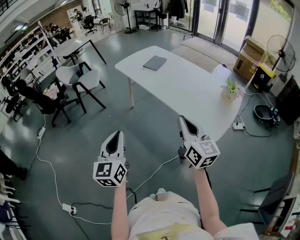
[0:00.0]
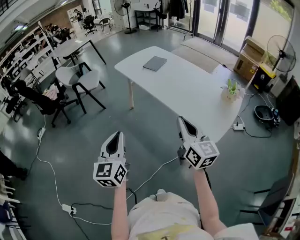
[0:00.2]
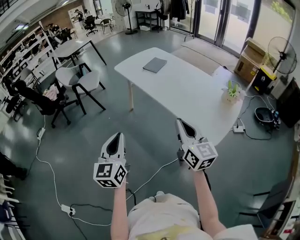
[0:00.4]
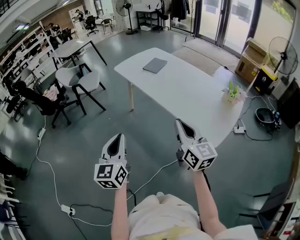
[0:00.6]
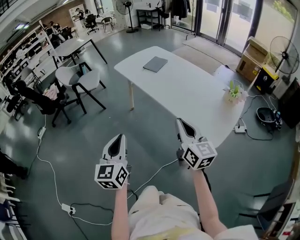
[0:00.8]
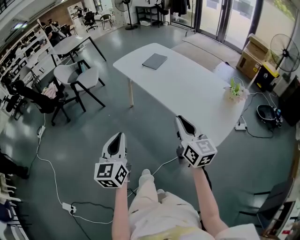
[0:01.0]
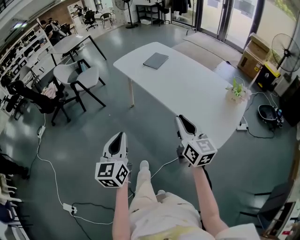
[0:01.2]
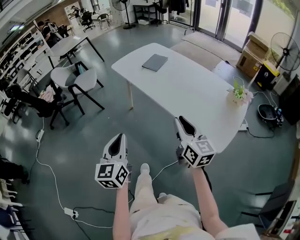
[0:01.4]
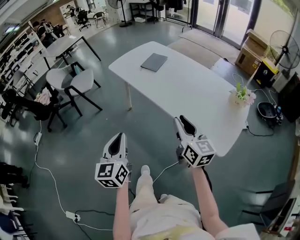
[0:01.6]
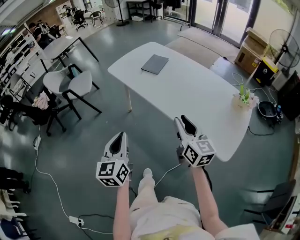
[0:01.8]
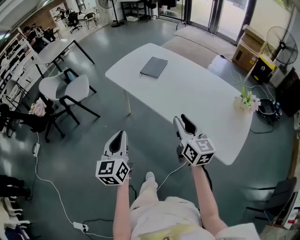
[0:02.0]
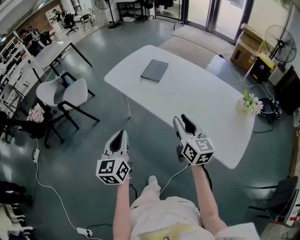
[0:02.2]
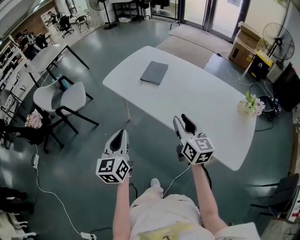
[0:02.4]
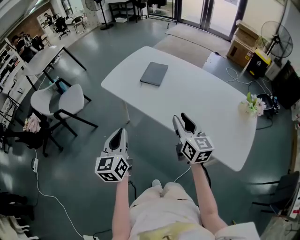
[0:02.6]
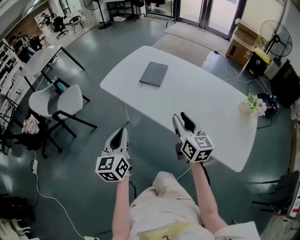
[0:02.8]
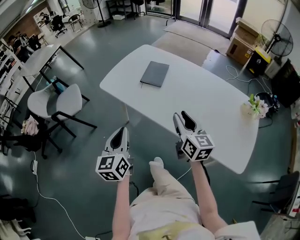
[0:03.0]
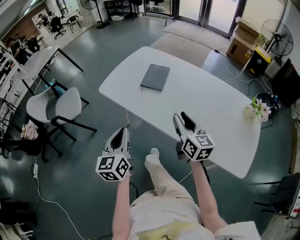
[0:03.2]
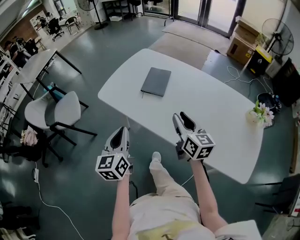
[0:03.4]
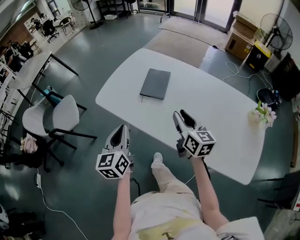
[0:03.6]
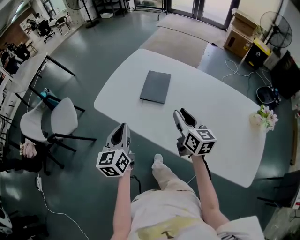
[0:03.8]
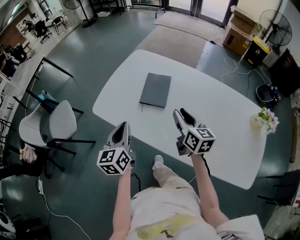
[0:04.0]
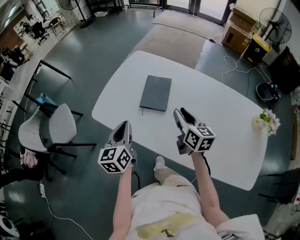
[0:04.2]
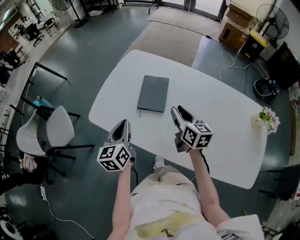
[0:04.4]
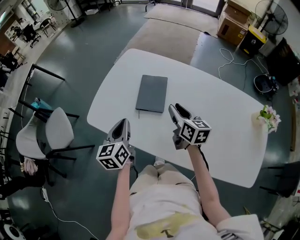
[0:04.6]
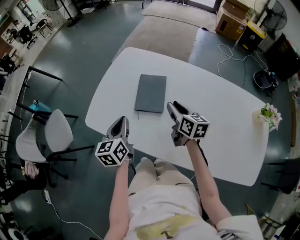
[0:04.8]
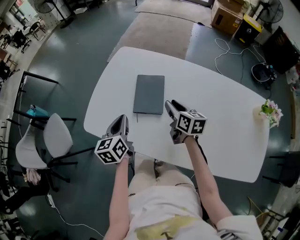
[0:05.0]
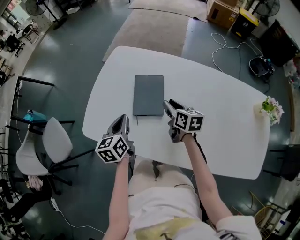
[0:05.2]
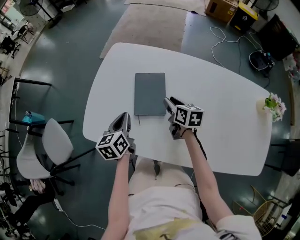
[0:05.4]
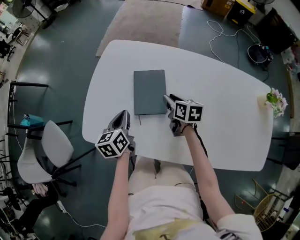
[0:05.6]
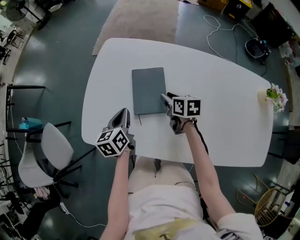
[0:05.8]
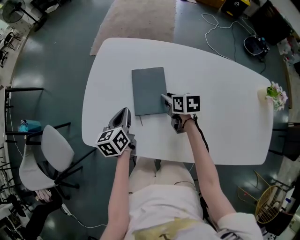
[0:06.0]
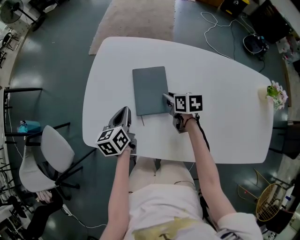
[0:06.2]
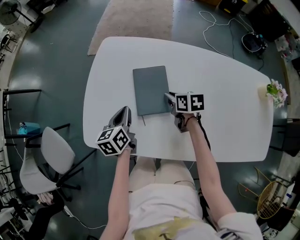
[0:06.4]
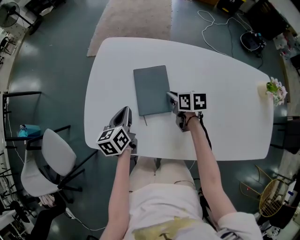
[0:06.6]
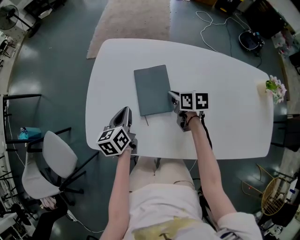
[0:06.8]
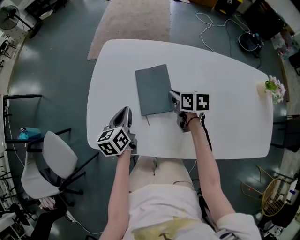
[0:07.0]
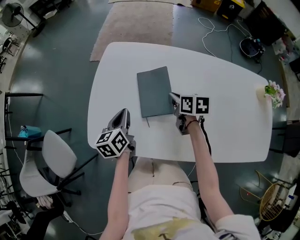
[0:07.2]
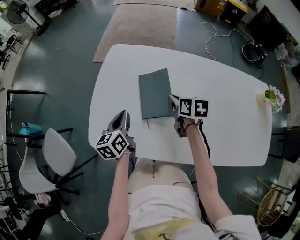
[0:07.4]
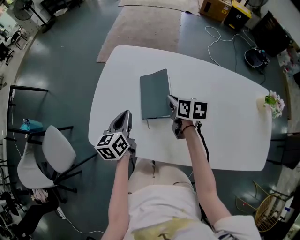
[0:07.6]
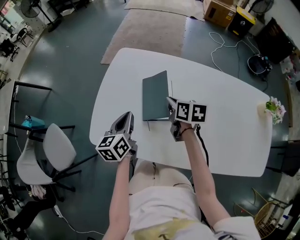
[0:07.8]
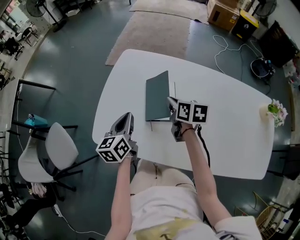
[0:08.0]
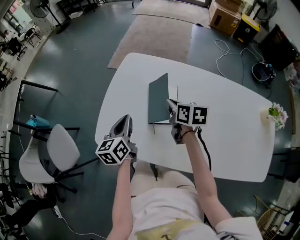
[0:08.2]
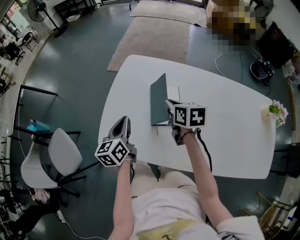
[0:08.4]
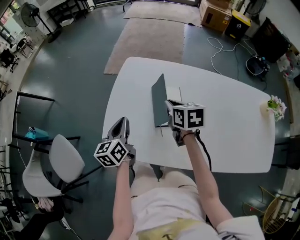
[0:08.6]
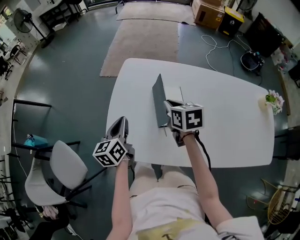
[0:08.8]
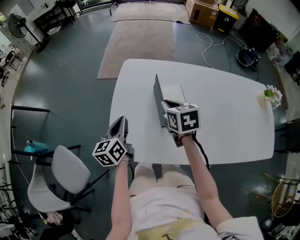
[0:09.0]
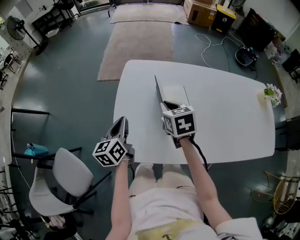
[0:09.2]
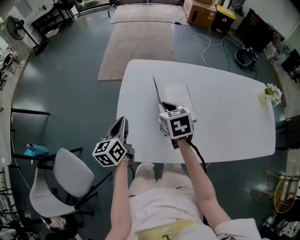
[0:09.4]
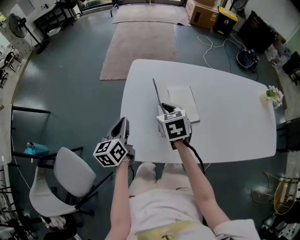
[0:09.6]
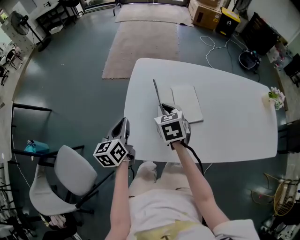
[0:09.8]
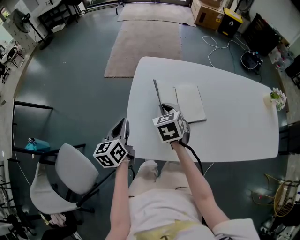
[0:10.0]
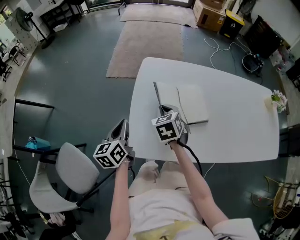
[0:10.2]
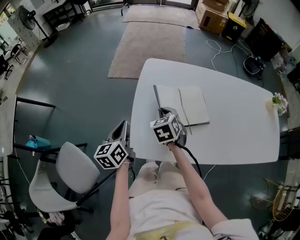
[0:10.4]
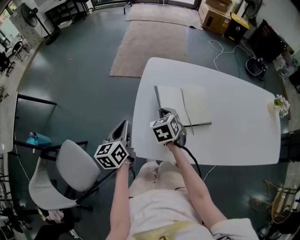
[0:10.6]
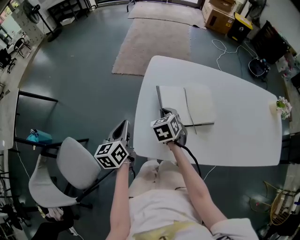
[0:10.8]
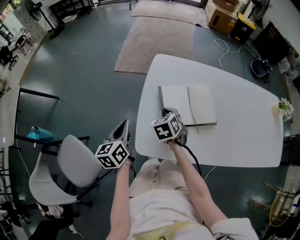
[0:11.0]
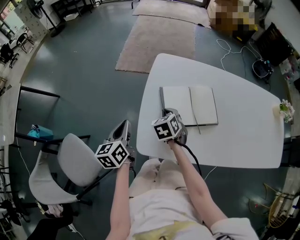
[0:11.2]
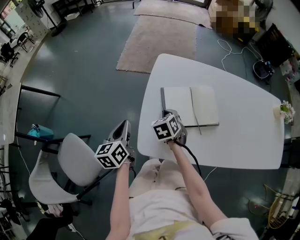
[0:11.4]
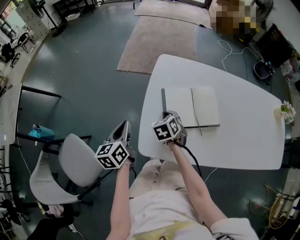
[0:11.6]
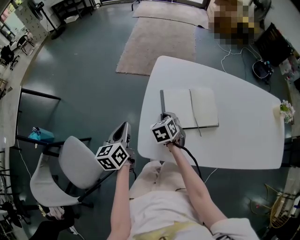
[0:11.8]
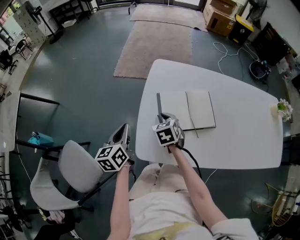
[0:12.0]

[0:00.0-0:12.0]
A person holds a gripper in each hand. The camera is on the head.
0:00.0 to 0:01.6: The two grippers go roughly 15 cm forward.
0:01.6 to 0:03.0: Both grippers move forward, roughly 25 cm.
0:03.0 to 0:04.4: Both grippers travel together forward, approximately 30 cm.
0:04.4 to 0:06.0: The left gripper heads forward and downward, covering about 20 cm, and rotates about 20 degrees. The right gripper goes about 20 cm downward and forward, and rotates some 30 degrees.
0:06.0 to 0:07.6: The left gripper changes place by about 5 cm. The right gripper goes roughly 5 cm upward, and closes.
0:07.6 to 0:09.0: The right gripper shifts roughly 15 cm to the left and upward, while the left gripper goes some 10 cm to the left.
0:09.0 to 0:10.4: The right gripper is displaced to the left and downward by some 15 cm, and changes its angle by some 20 degrees; the left gripper heads to the left, covering some 10 cm.
0:10.4 to 0:12.0: The right gripper goes roughly 5 cm downward.

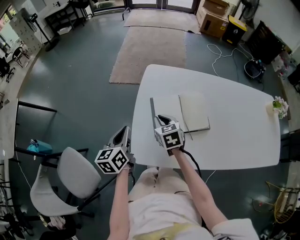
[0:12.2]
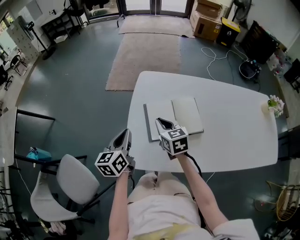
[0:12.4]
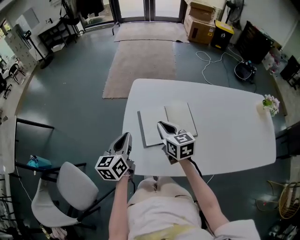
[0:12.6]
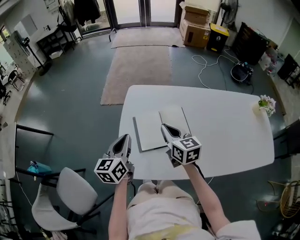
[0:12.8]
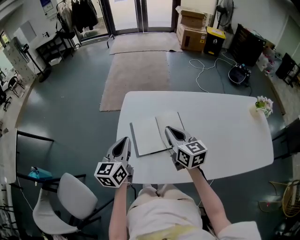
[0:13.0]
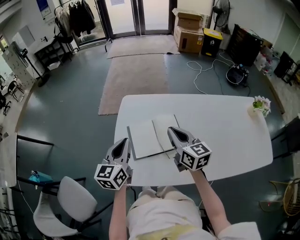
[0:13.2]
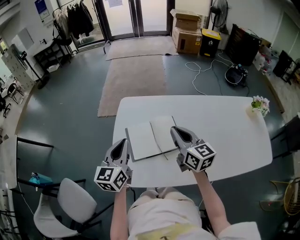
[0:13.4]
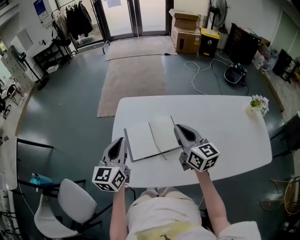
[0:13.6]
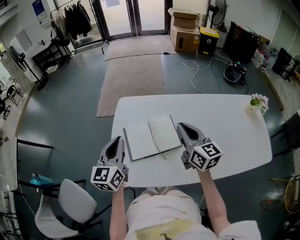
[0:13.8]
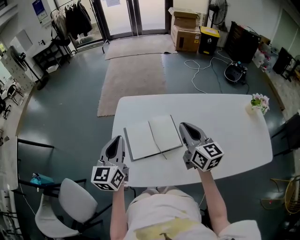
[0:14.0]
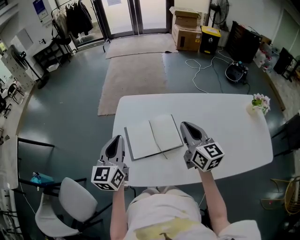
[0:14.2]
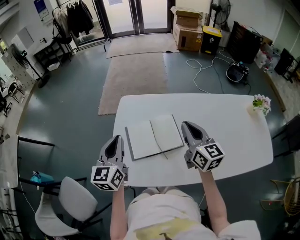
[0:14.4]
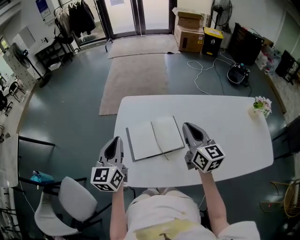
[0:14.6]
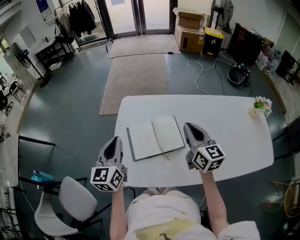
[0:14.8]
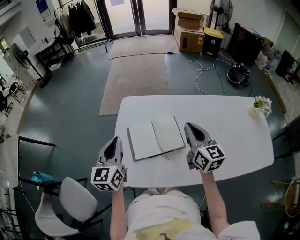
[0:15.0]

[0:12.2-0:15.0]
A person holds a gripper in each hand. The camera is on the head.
0:12.2 to 0:13.6: Both grippers travel together to the right and upward, about 25 cm. The left gripper turns by roughly 30 degrees. The right gripper tips its fingers upward by roughly 40 degrees.
0:13.6 to 0:15.0: The grippers move only a little.

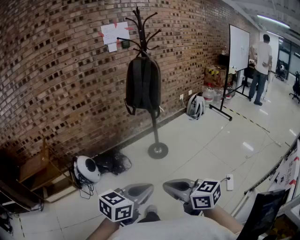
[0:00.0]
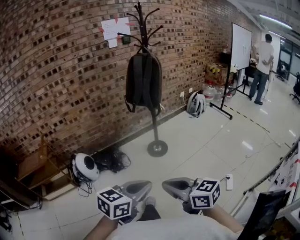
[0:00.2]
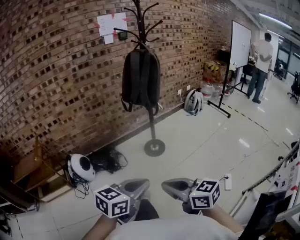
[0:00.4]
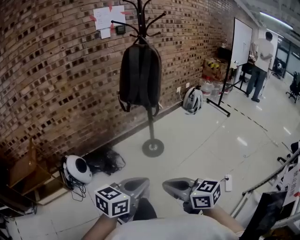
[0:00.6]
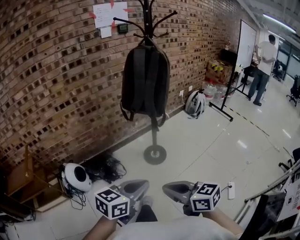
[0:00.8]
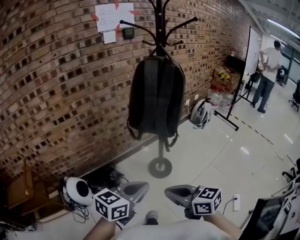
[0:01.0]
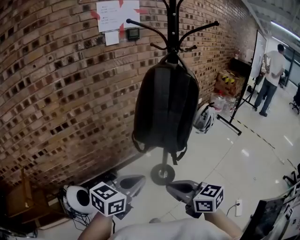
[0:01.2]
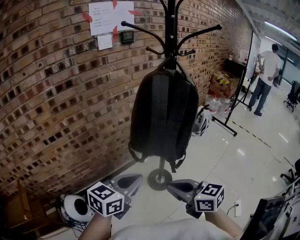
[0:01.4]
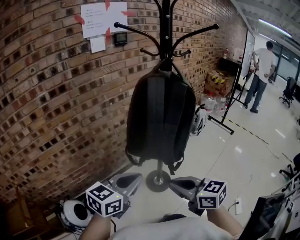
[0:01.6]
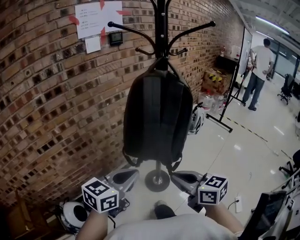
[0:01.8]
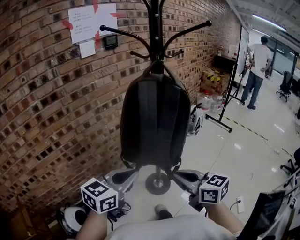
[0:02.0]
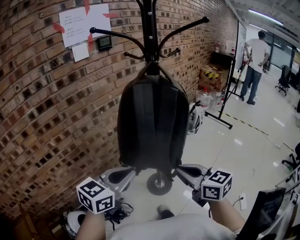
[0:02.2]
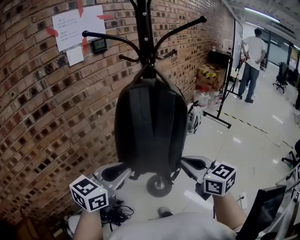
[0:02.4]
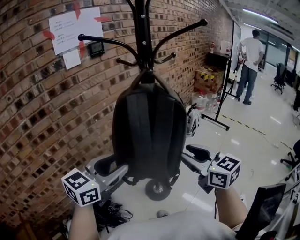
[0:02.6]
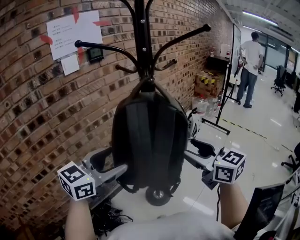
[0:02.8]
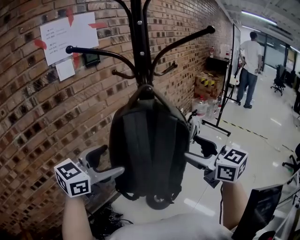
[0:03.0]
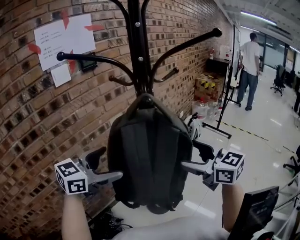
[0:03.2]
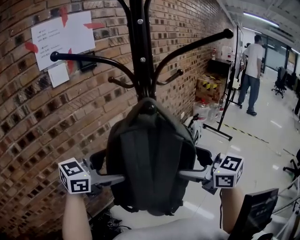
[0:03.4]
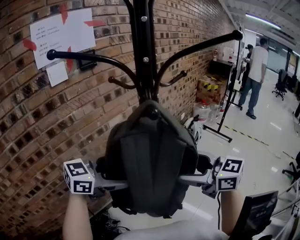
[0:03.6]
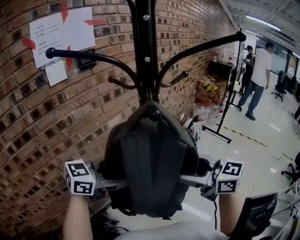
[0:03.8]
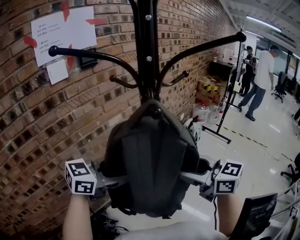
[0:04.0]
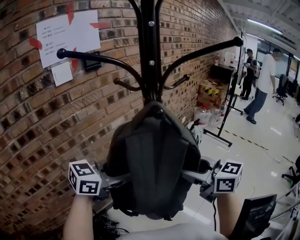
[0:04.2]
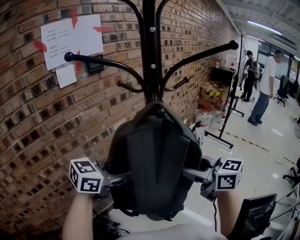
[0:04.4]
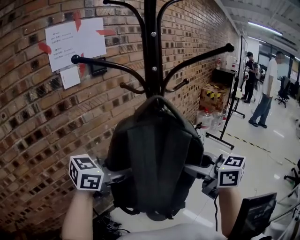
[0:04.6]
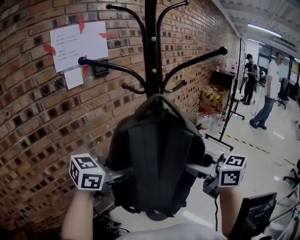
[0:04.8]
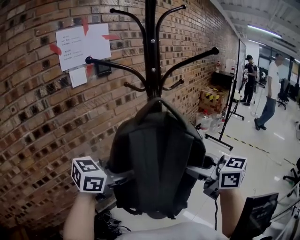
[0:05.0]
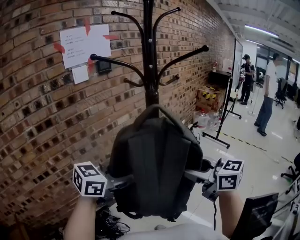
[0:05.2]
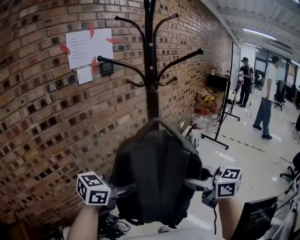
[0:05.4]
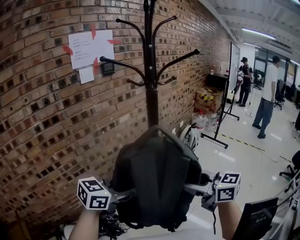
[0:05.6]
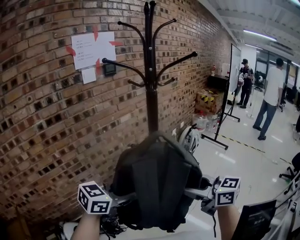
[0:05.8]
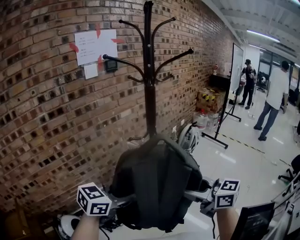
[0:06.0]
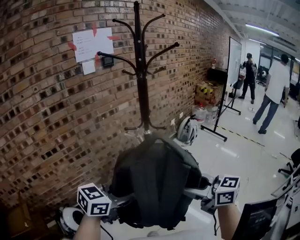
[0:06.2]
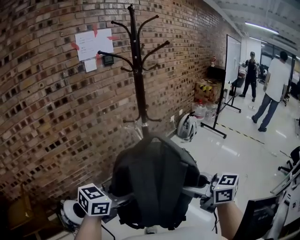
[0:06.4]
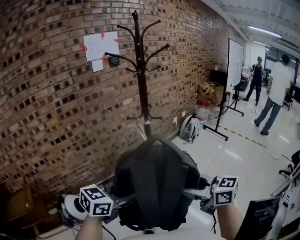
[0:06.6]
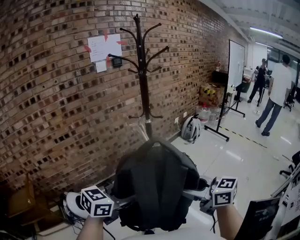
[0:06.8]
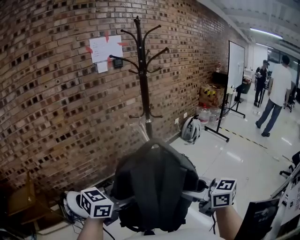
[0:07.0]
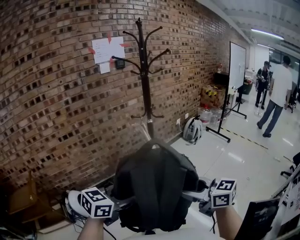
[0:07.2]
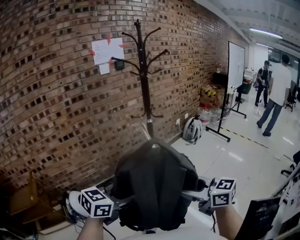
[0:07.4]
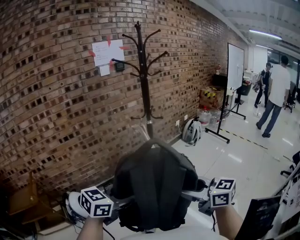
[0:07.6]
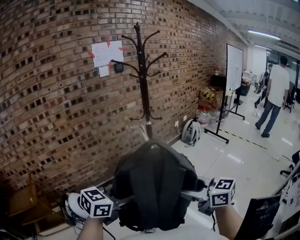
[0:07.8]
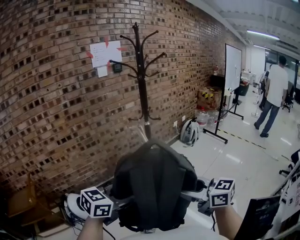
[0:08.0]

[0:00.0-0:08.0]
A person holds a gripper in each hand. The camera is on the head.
0:00.0 to 0:01.6: Both grippers are carried forward, approximately 60 cm.
0:01.6 to 0:03.2: The right gripper is displaced forward and upward by some 30 cm, turns by about 20 degrees, and opens up; the left gripper travels forward by some 25 cm, and opens.
0:03.2 to 0:04.8: The left gripper closes up. Meanwhile the right gripper closes its fingers.
0:04.8 to 0:06.4: Both grippers move backward, some 40 cm.
0:06.4 to 0:08.0: The two grippers go some 15 cm backward.

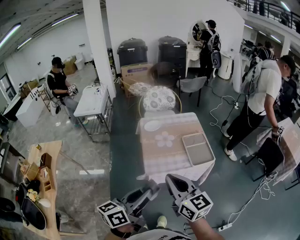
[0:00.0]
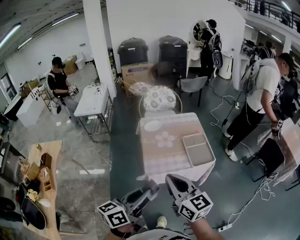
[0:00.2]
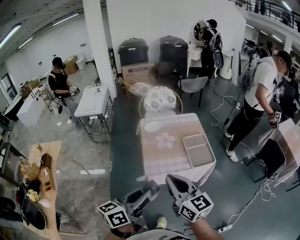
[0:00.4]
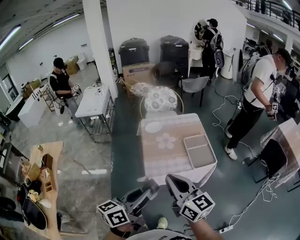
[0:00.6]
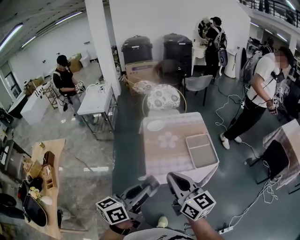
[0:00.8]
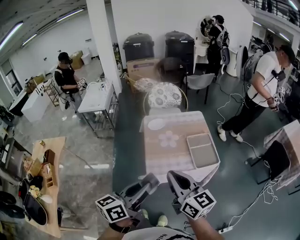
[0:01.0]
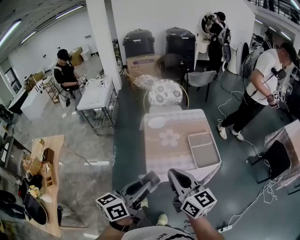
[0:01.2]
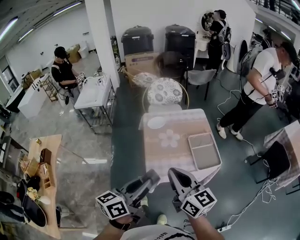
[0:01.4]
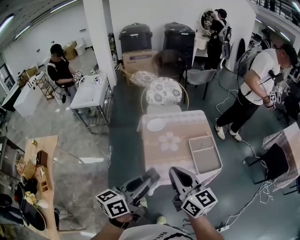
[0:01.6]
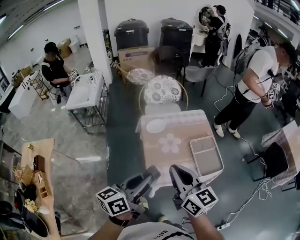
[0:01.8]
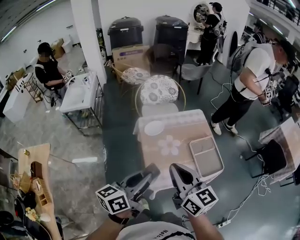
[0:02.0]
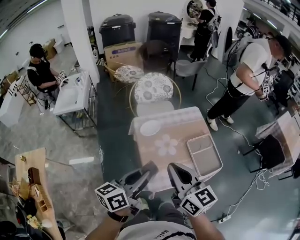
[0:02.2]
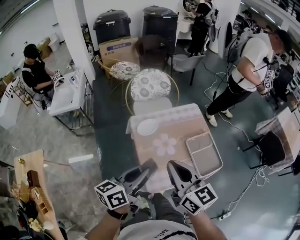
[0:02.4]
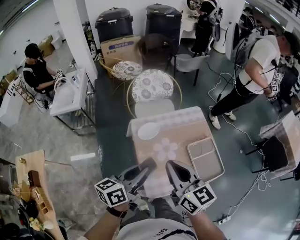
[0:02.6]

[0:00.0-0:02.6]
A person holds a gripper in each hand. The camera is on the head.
0:00.0 to 0:01.2: The two grippers go about 5 cm forward.
0:01.2 to 0:02.6: Both grippers move forward, about 25 cm.
